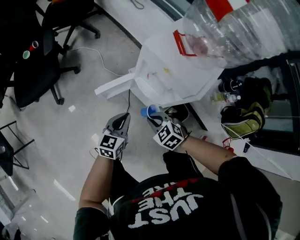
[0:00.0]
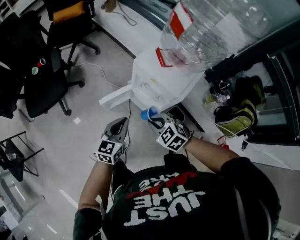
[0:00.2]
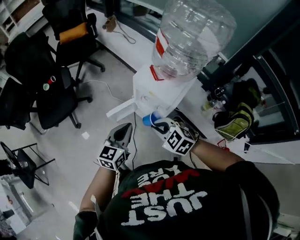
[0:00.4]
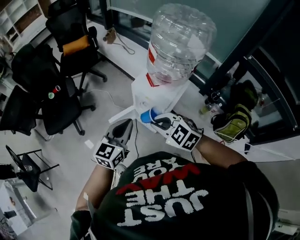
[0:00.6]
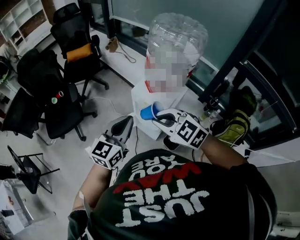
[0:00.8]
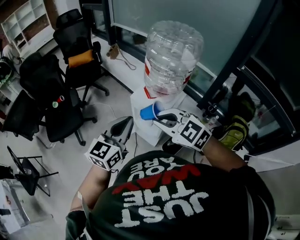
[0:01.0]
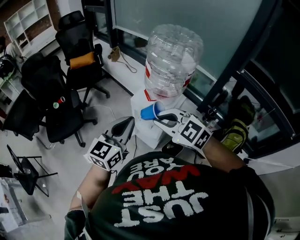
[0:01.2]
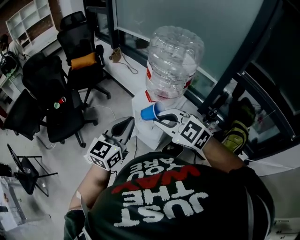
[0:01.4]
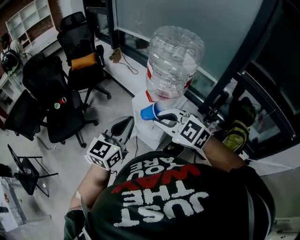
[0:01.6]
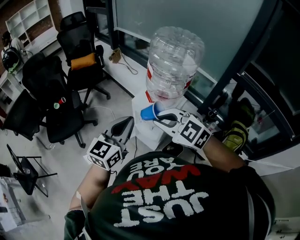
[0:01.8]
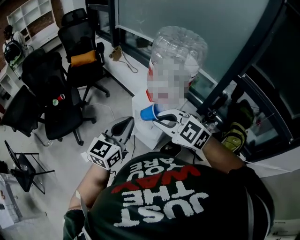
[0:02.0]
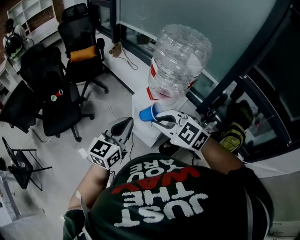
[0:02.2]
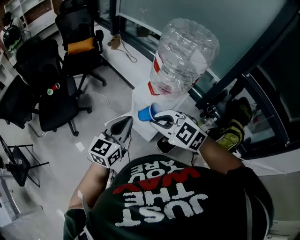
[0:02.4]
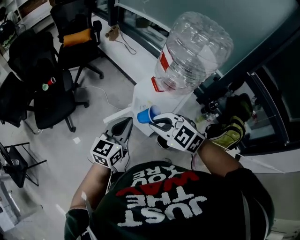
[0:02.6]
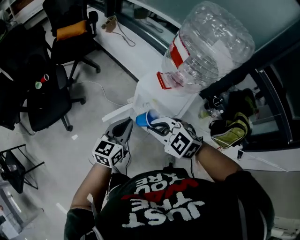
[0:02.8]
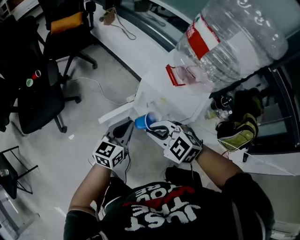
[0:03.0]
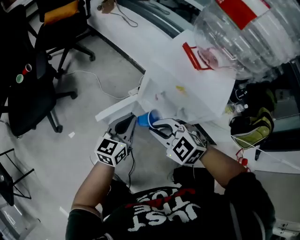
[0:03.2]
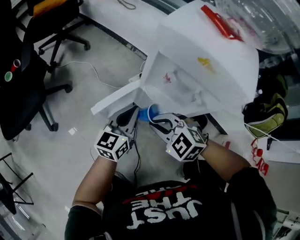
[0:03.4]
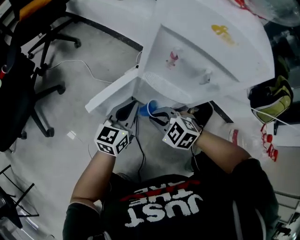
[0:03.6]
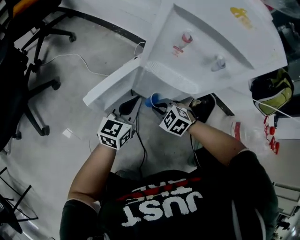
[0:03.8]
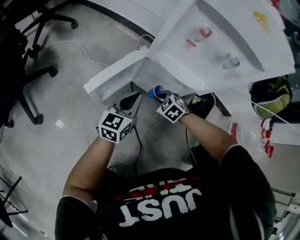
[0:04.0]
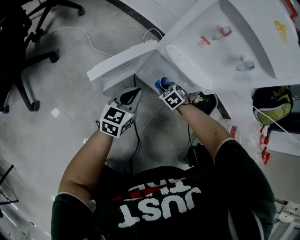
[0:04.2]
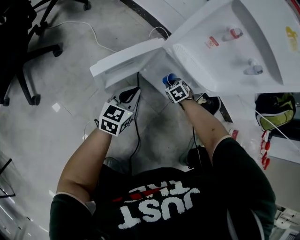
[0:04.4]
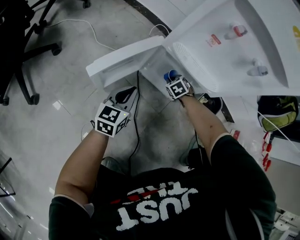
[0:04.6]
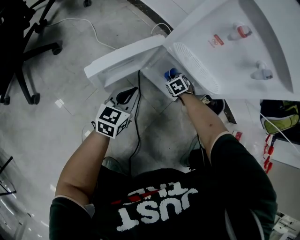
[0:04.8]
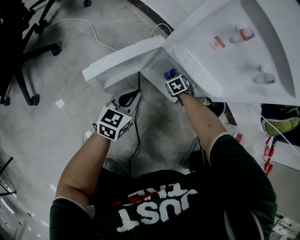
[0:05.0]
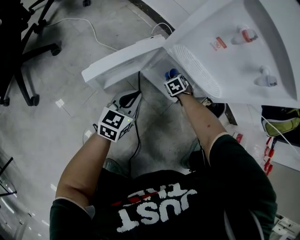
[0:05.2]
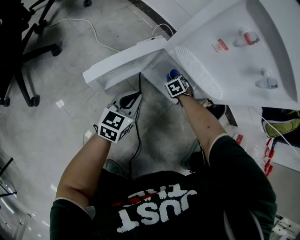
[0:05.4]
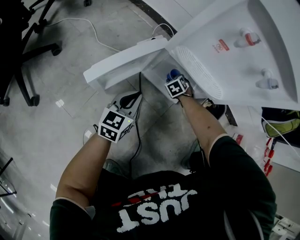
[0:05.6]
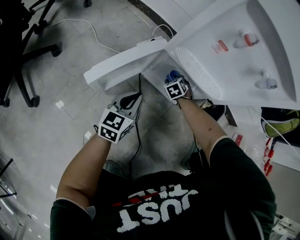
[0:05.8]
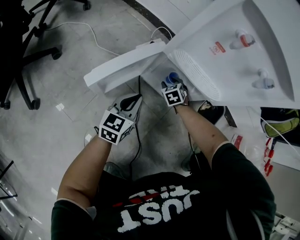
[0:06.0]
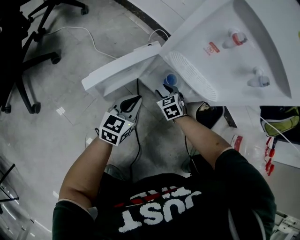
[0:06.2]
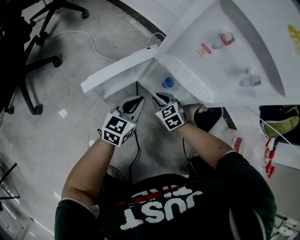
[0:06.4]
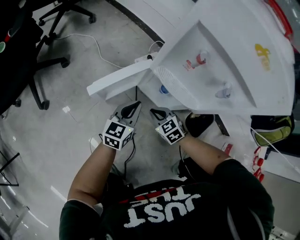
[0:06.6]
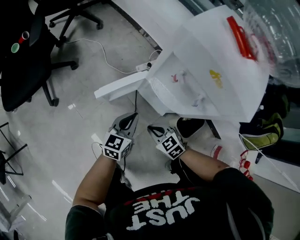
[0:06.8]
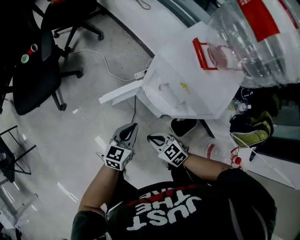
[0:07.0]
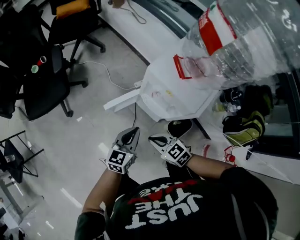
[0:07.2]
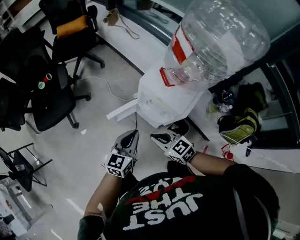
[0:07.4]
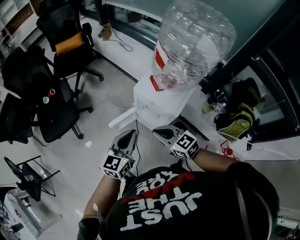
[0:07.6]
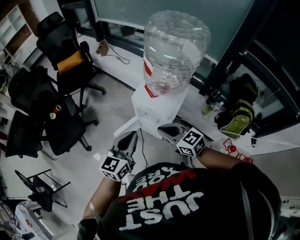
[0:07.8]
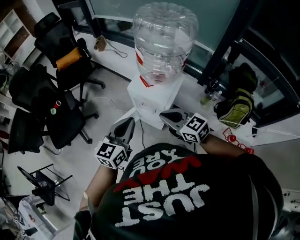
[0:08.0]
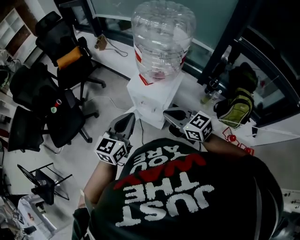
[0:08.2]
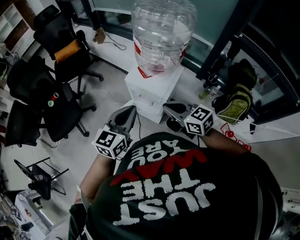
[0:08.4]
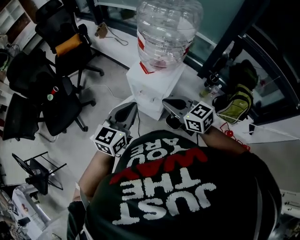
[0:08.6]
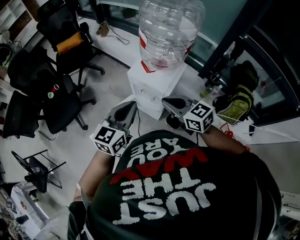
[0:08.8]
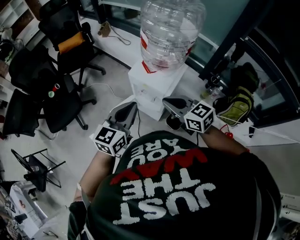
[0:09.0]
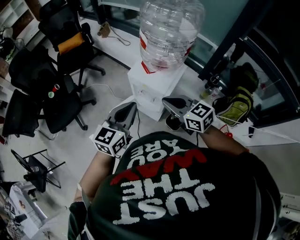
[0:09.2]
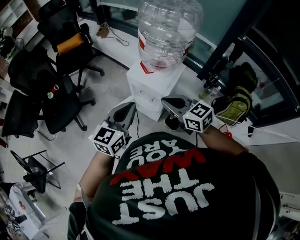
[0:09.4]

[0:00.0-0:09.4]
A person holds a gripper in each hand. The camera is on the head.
0:00.0 to 0:01.6: Both grippers move upward, approximately 50 cm. The right gripper swivels some 30 degrees; the left gripper turns by approximately 20 degrees.
0:01.6 to 0:03.2: Both grippers move downward, approximately 50 cm.
0:03.2 to 0:04.8: The right gripper moves downward, approximately 60 cm, and changes its angle by roughly 40 degrees; the left gripper is displaced downward by about 35 cm.
0:04.8 to 0:06.2: The right gripper heads backward and upward, covering roughly 10 cm, and opens its fingers.
0:06.2 to 0:07.8: The grippers both shift upward by approximately 80 cm. The right gripper tilts its fingers about 30 degrees upward, and closes.
0:07.8 to 0:09.4: The left gripper shifts by some 5 cm; the right gripper goes roughly 5 cm upward.

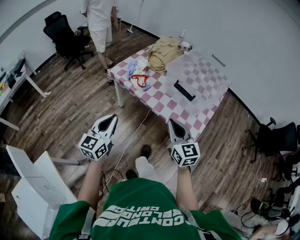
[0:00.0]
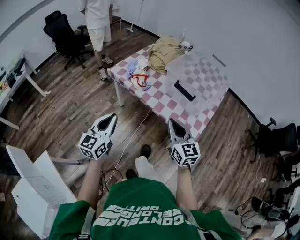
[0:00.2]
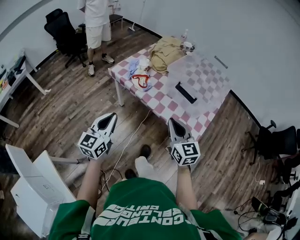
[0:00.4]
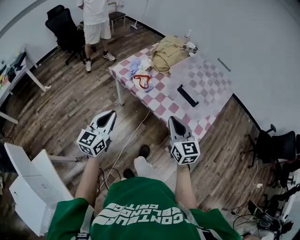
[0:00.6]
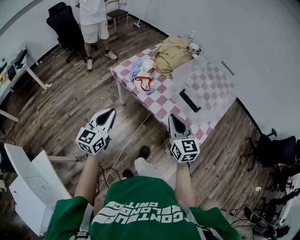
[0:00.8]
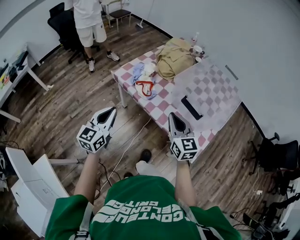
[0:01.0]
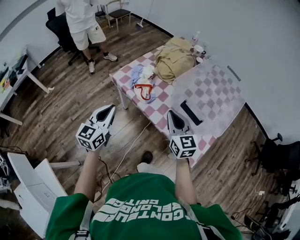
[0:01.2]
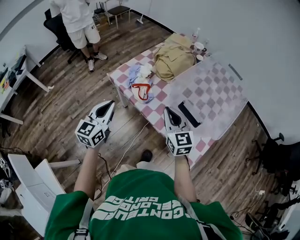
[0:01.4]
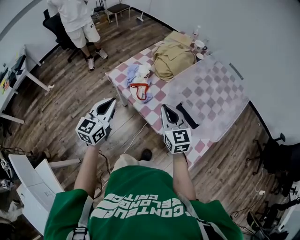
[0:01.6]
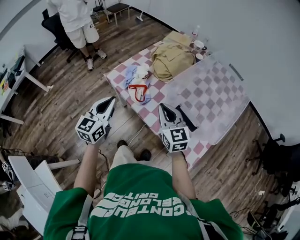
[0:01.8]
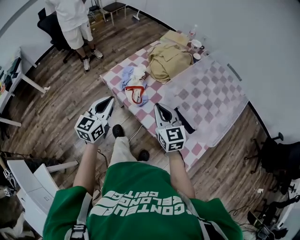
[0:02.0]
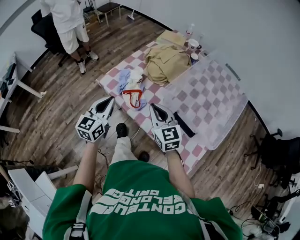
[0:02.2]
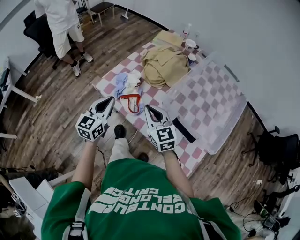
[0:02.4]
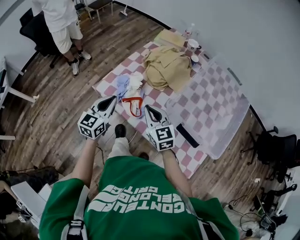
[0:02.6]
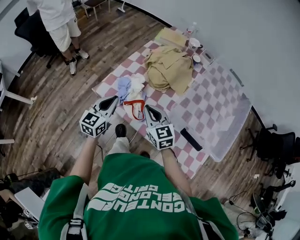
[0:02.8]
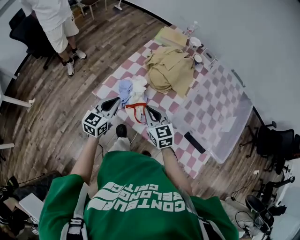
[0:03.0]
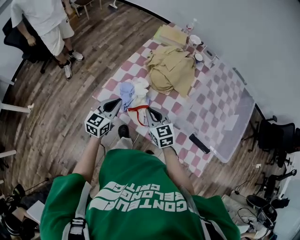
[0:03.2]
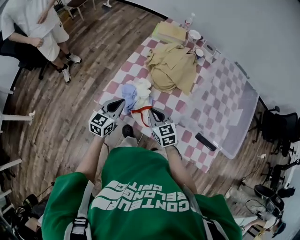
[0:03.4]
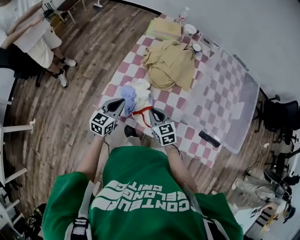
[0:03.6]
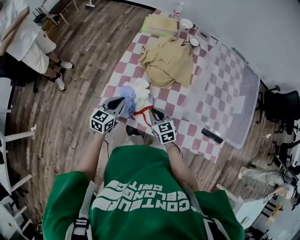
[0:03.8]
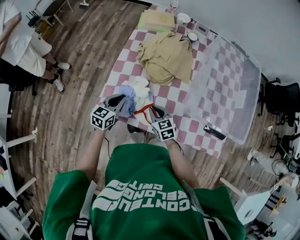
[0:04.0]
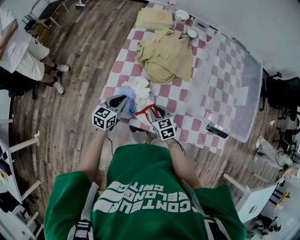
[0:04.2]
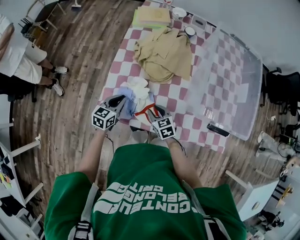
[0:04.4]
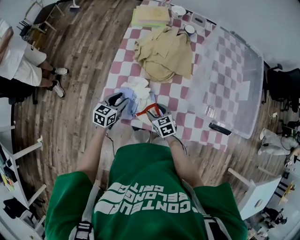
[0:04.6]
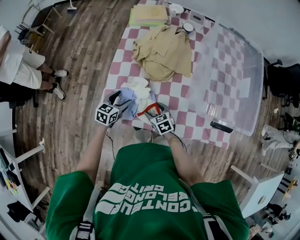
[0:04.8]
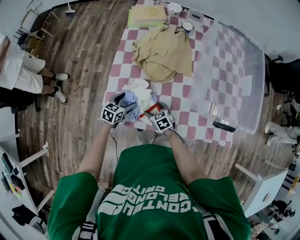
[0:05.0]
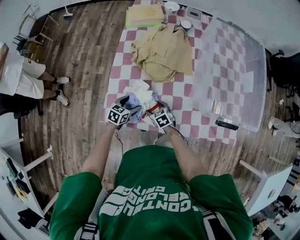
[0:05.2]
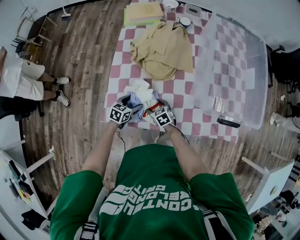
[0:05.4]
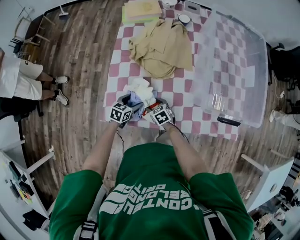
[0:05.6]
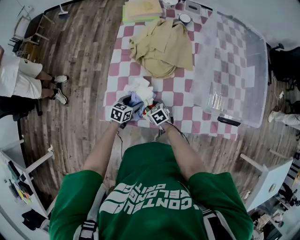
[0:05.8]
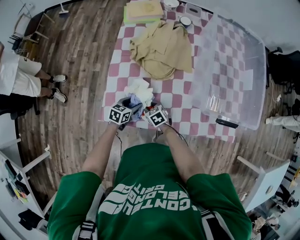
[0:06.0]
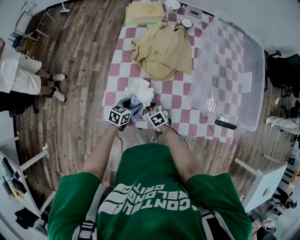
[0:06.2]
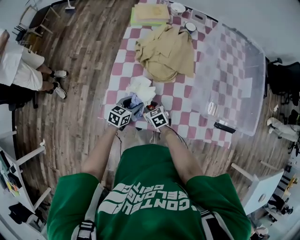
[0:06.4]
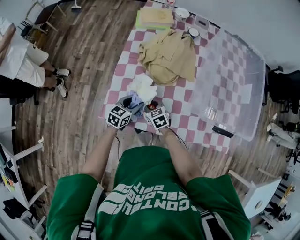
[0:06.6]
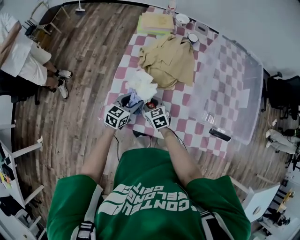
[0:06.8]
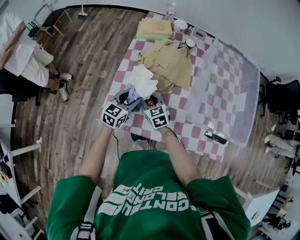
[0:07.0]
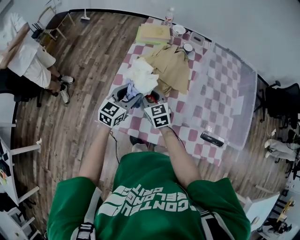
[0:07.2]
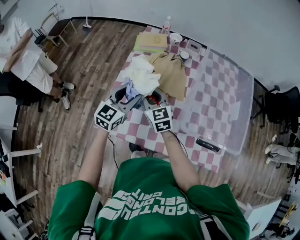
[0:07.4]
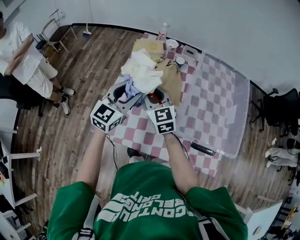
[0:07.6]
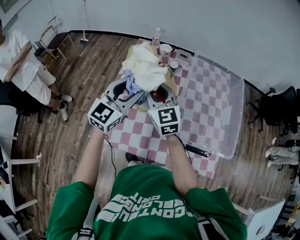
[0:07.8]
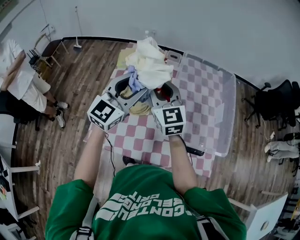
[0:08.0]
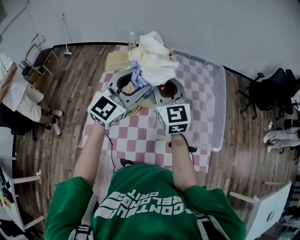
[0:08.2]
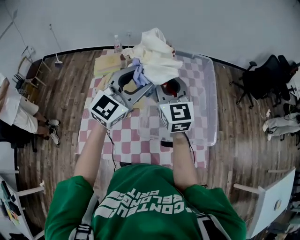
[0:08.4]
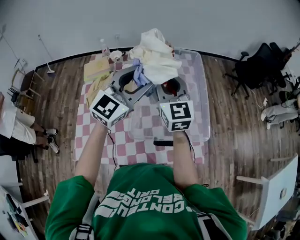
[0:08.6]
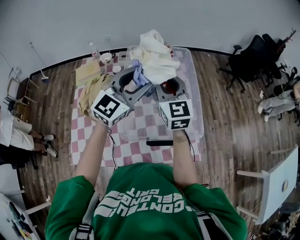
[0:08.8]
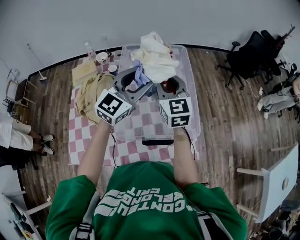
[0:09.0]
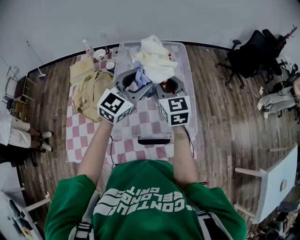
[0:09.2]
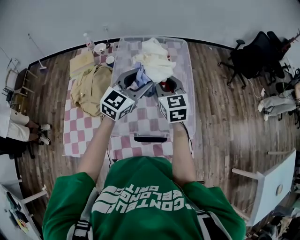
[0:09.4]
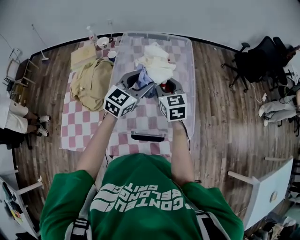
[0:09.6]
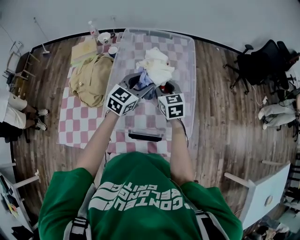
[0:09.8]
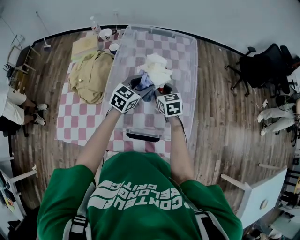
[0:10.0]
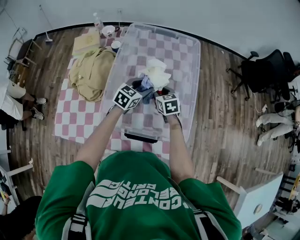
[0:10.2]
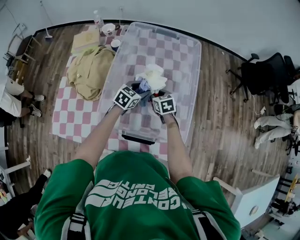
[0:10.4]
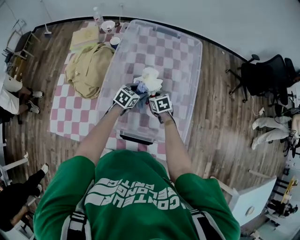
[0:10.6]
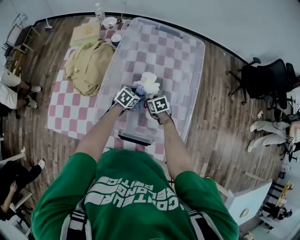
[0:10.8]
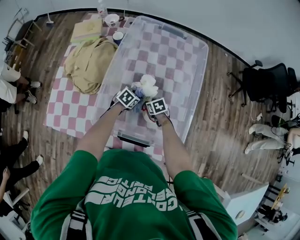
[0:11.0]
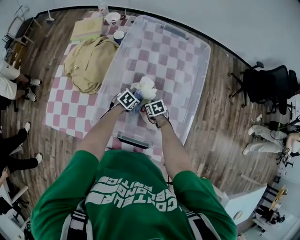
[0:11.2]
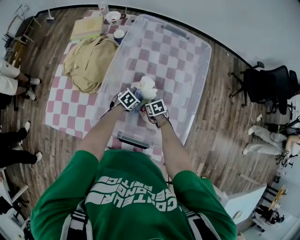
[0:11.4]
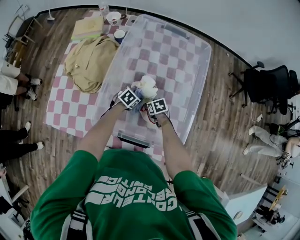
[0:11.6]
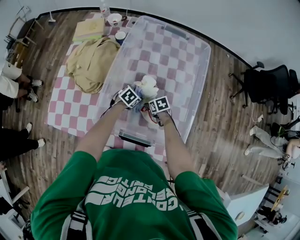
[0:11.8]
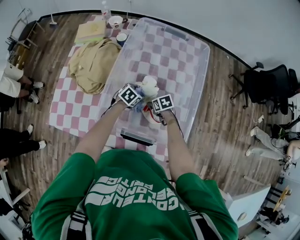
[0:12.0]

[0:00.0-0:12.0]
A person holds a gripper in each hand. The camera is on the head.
0:00.0 to 0:01.6: Both grippers move forward, about 25 cm.
0:01.6 to 0:03.0: The right gripper is displaced forward, to the left and downward by some 25 cm. Meanwhile the left gripper travels forward and downward by some 30 cm.
0:03.0 to 0:04.4: The left gripper is displaced downward and forward by approximately 20 cm, and swivels approximately 30 degrees. Meanwhile the right gripper moves downward, roughly 20 cm, and rotates roughly 30 degrees.
0:04.4 to 0:06.0: The right gripper moves downward, about 10 cm, and opens, then closes again, while the left gripper shifts some 10 cm downward and to the right, rotates roughly 20 degrees, and opens up.
0:06.0 to 0:07.6: Both grippers move upward, roughly 40 cm. The left gripper tilts its fingers about 30 degrees upward. Meanwhile the right gripper tips its fingers upward by about 40 degrees.
0:07.6 to 0:09.0: The left gripper moves roughly 40 cm, and swivels some 30 degrees; the right gripper changes place by about 40 cm, and rotates roughly 30 degrees.
0:09.0 to 0:10.4: Both grippers move downward, roughly 35 cm. The right gripper points its fingers roughly 40 degrees further downward. Meanwhile the left gripper angles its fingers downward, by roughly 30 degrees.
0:10.4 to 0:12.0: Both grippers move downward, some 10 cm. The right gripper rotates approximately 30 degrees, and opens its fingers; the left gripper rotates roughly 20 degrees.

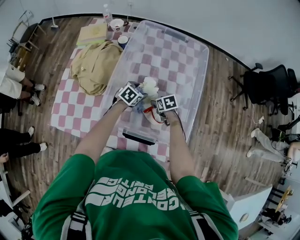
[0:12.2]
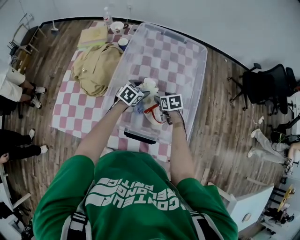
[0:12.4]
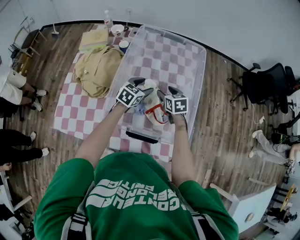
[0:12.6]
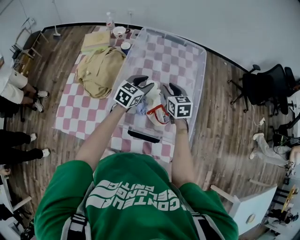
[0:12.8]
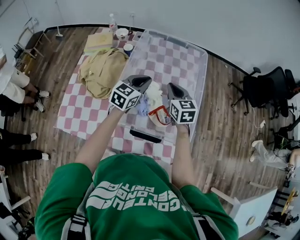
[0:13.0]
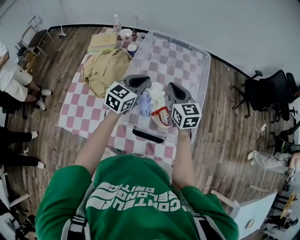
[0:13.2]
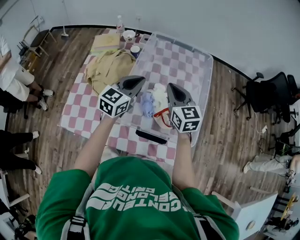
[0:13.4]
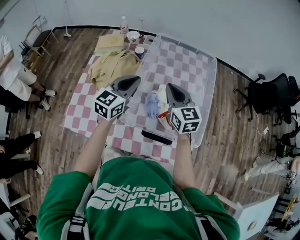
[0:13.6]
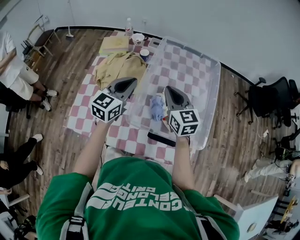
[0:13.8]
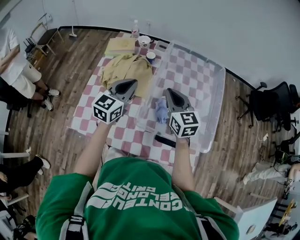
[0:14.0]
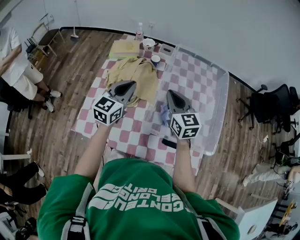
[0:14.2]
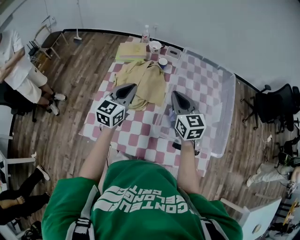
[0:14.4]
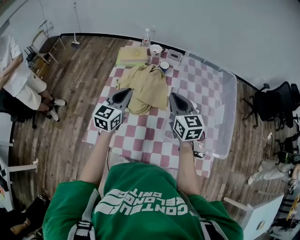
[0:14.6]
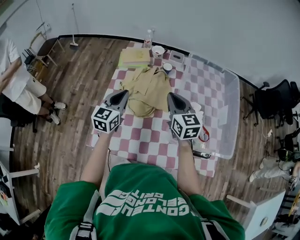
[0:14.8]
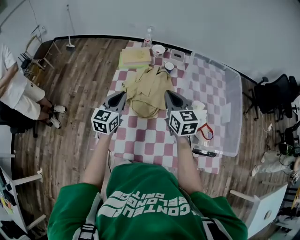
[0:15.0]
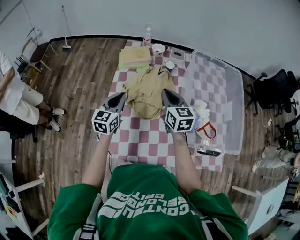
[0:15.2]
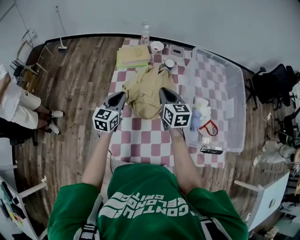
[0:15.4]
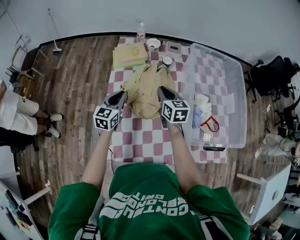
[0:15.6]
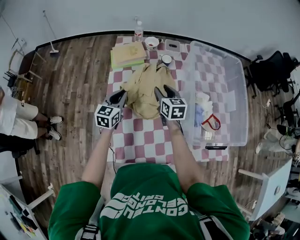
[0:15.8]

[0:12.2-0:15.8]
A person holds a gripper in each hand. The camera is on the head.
0:12.2 to 0:14.0: The two grippers go some 35 cm upward and to the left. The left gripper tilts its fingers approximately 40 degrees upward, and closes, while the right gripper angles its fingers upward, by roughly 50 degrees, and closes.
0:14.0 to 0:15.8: Both grippers travel together to the left, downward and forward, some 30 cm. The right gripper turns by approximately 30 degrees, and opens up.
